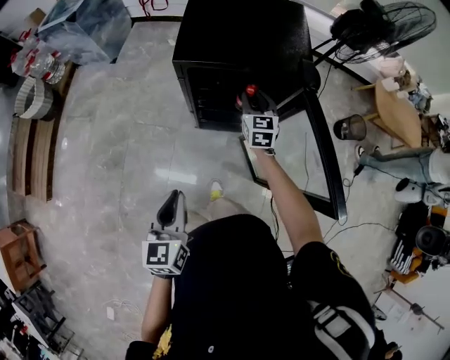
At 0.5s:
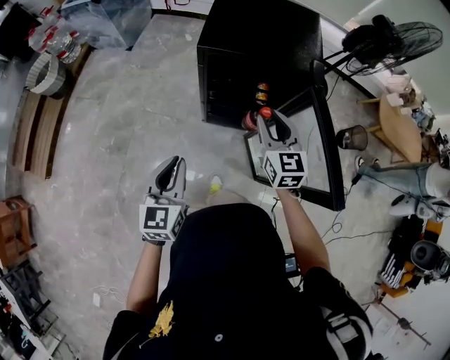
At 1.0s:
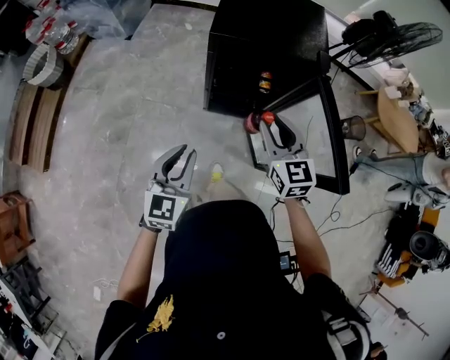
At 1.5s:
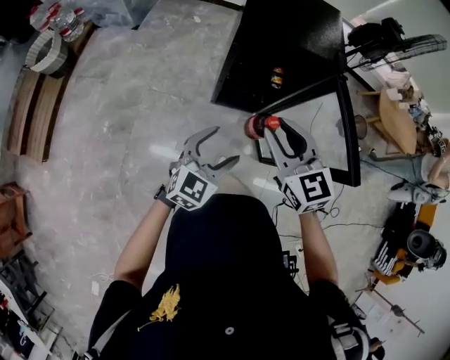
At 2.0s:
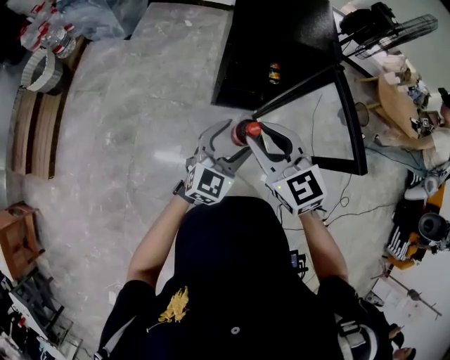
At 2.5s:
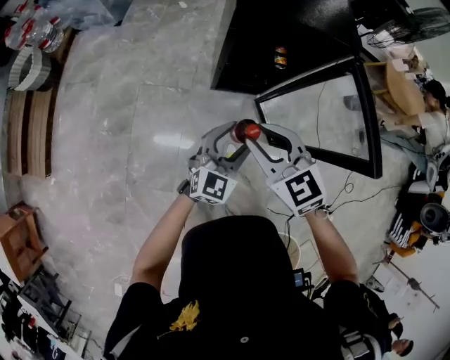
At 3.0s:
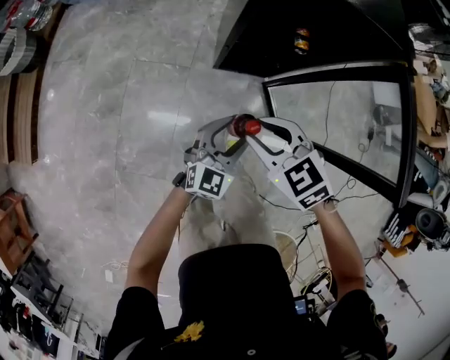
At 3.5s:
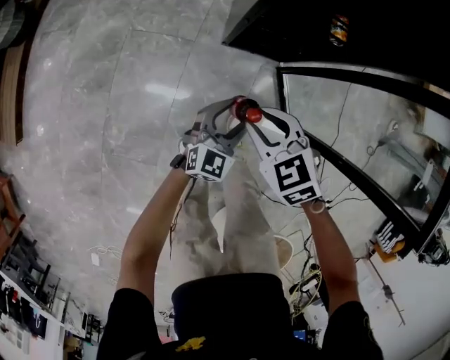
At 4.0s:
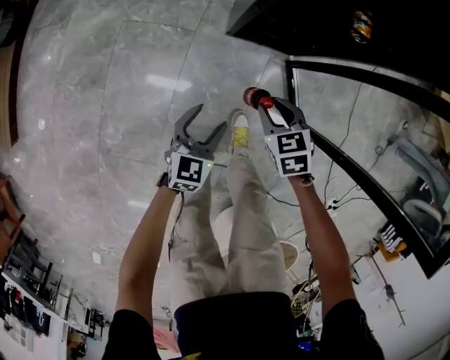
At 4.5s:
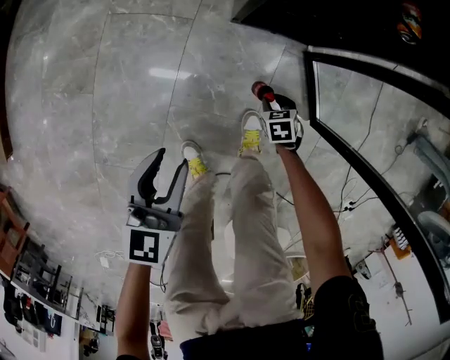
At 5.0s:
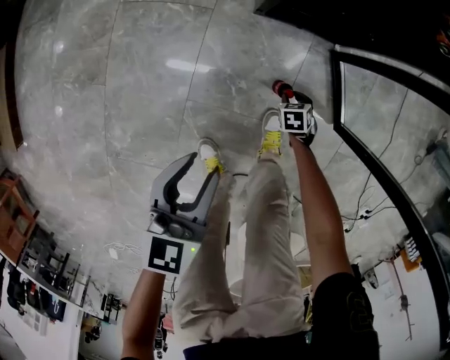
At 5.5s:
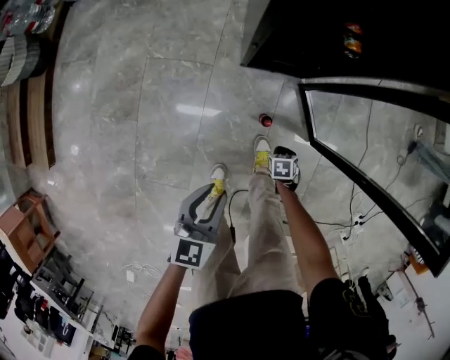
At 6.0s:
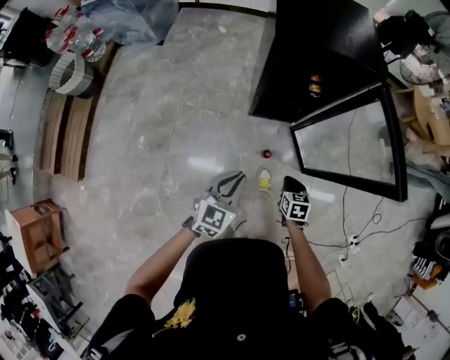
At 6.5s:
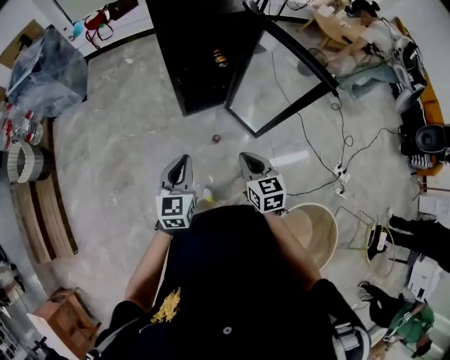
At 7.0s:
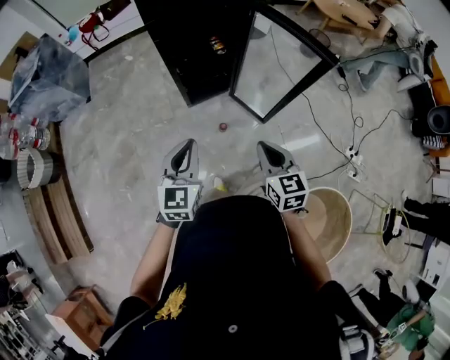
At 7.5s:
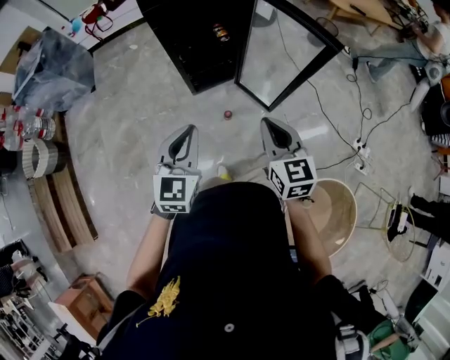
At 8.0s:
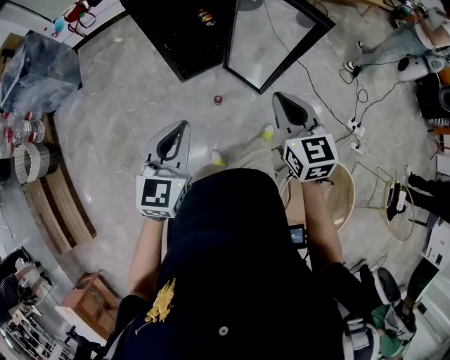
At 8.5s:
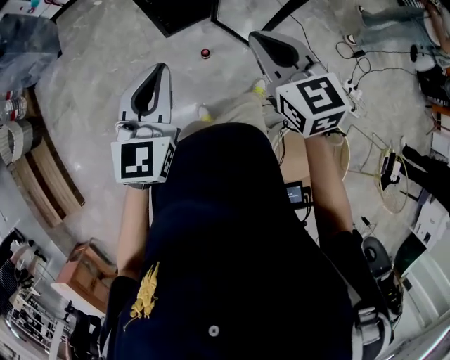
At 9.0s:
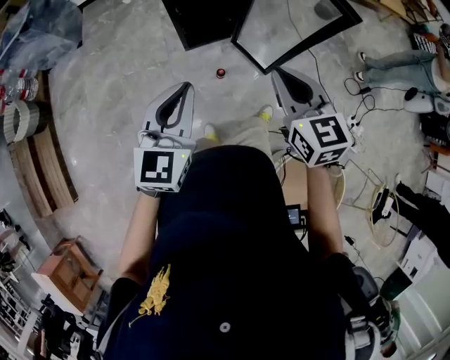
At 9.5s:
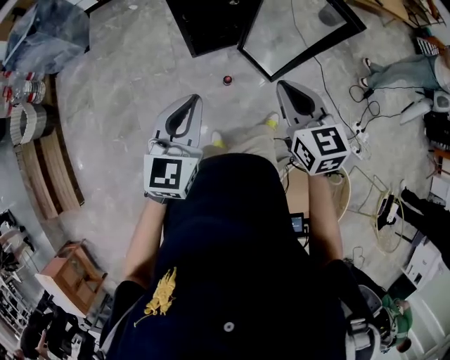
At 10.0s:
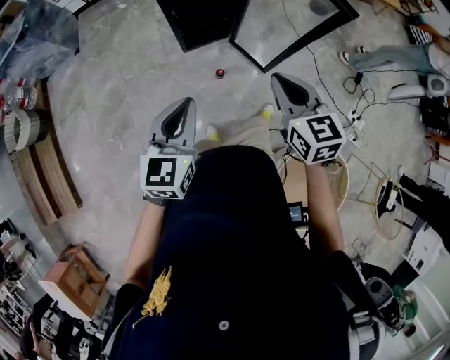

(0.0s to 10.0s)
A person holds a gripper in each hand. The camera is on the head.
0.0s - 2.0s: The left gripper rotates about 40 degrees, and opens its fingers; the right gripper travels backward, upward and to the left by some 40 cm, and rotates some 30 degrees.
2.0s - 4.0s: Both grippers move downward, some 60 cm. The left gripper swivels some 30 degrees. The right gripper points its fingers approximately 30 degrees further downward.
4.0s - 6.0s: The right gripper shifts approximately 25 cm upward, changes its angle by approximately 30 degrees, and closes its fingers. The left gripper travels upward by roughly 40 cm, and closes.
6.0s - 8.0s: The left gripper heads upward, backward and to the right, covering about 20 cm. Meanwhile the right gripper travels upward and backward by some 35 cm, and angles its fingers upward, by some 30 degrees.
8.0s - 10.0s: There are only small adjustments of the grippers.

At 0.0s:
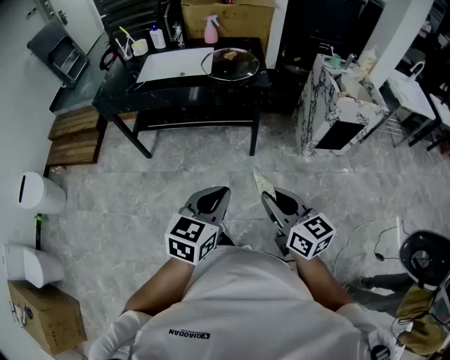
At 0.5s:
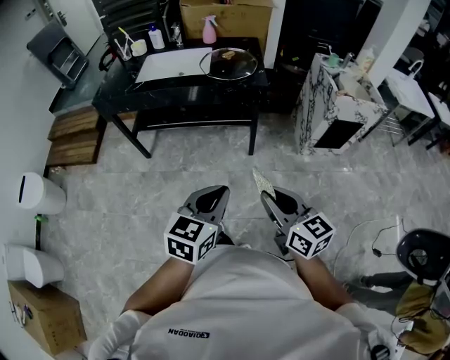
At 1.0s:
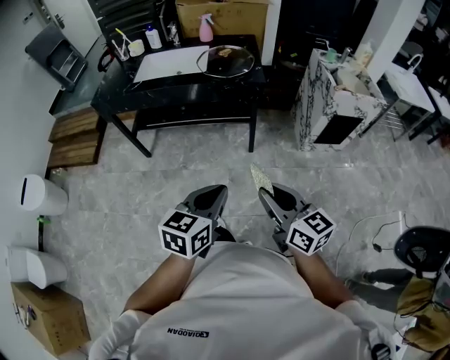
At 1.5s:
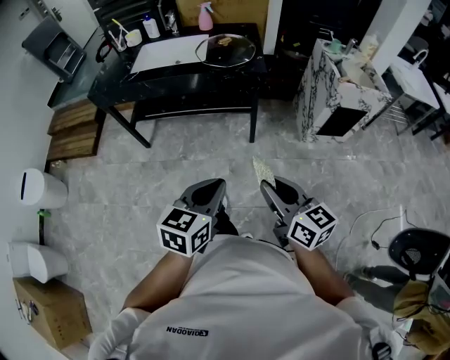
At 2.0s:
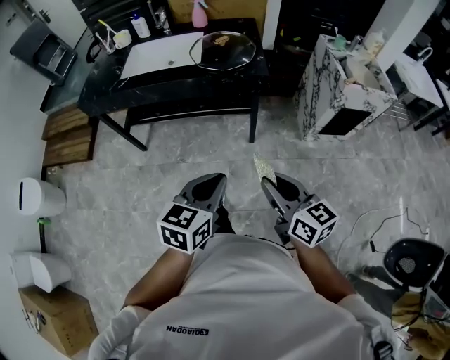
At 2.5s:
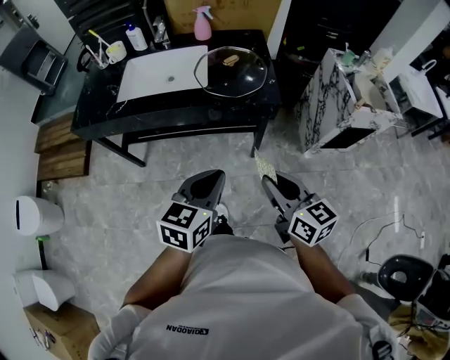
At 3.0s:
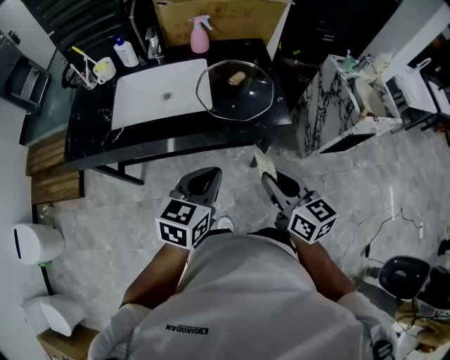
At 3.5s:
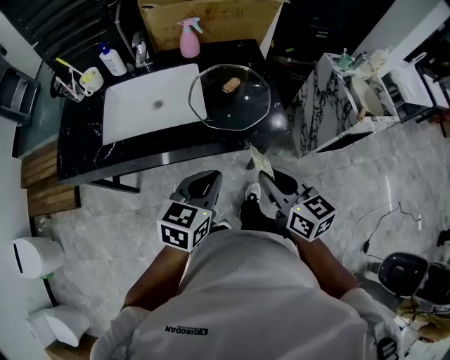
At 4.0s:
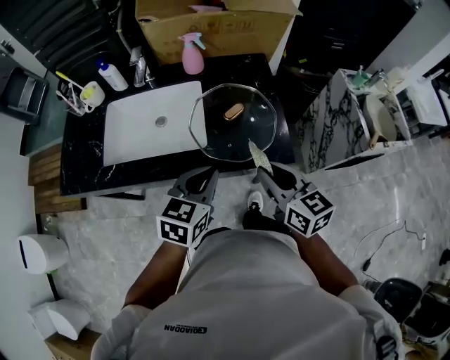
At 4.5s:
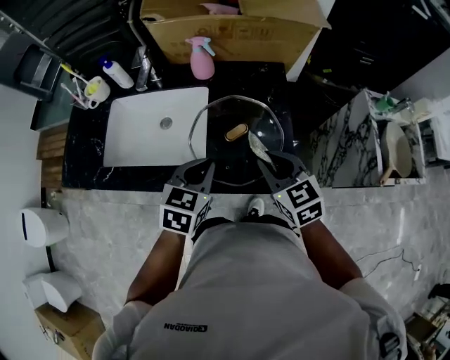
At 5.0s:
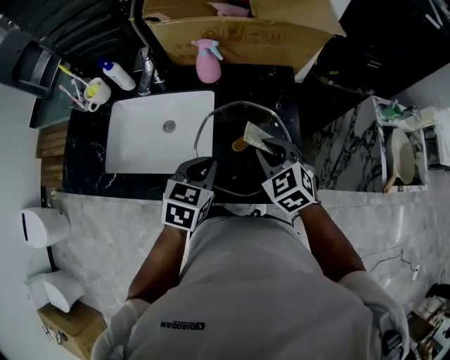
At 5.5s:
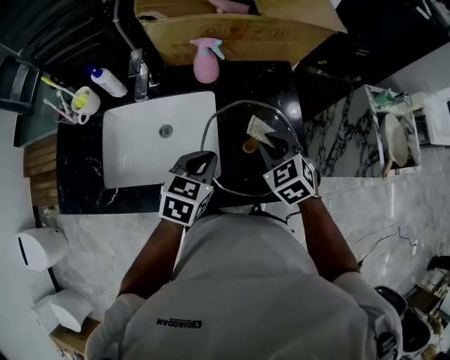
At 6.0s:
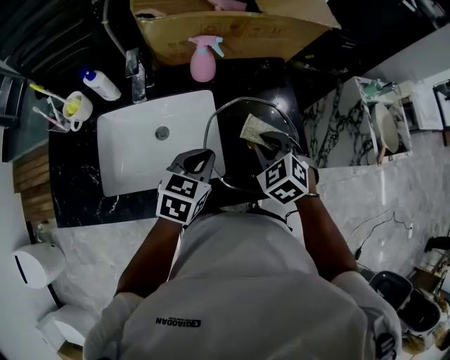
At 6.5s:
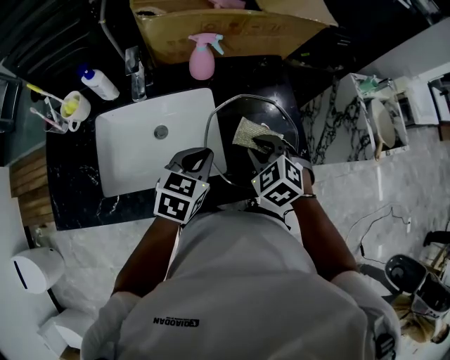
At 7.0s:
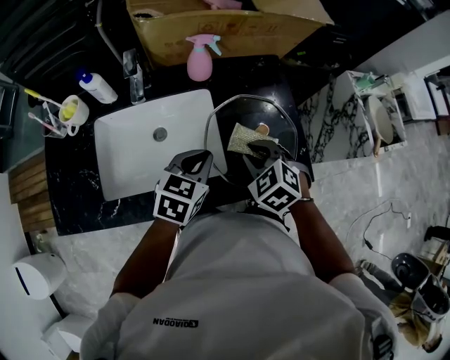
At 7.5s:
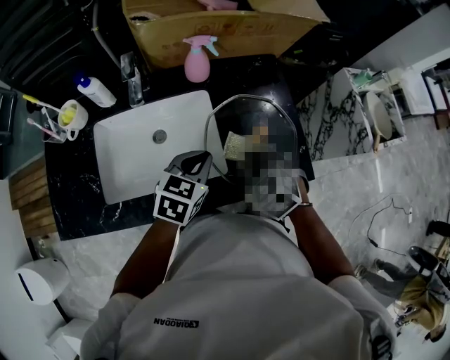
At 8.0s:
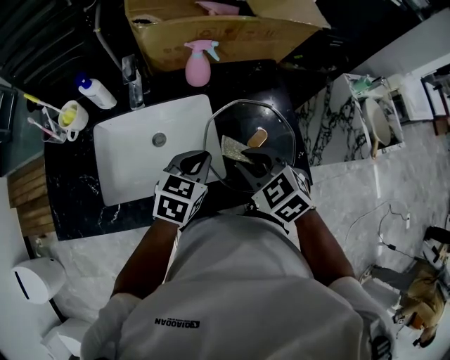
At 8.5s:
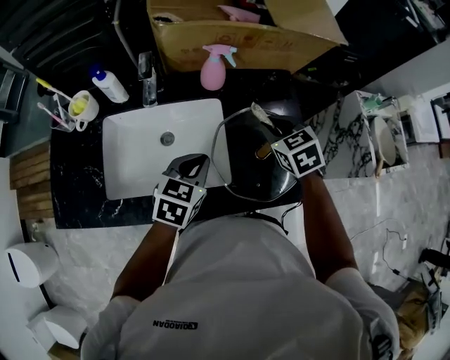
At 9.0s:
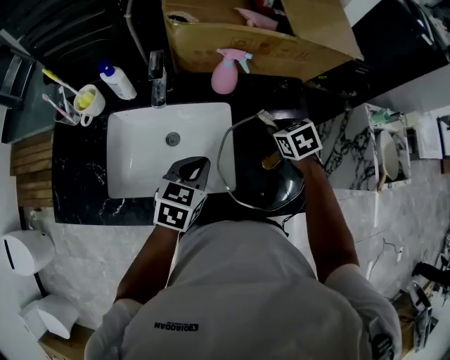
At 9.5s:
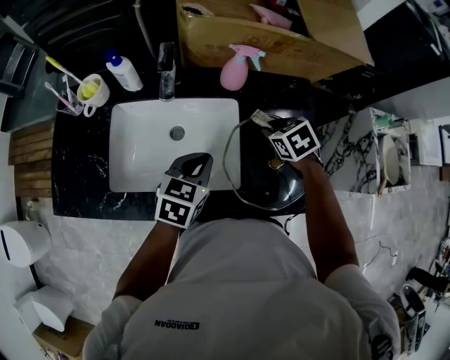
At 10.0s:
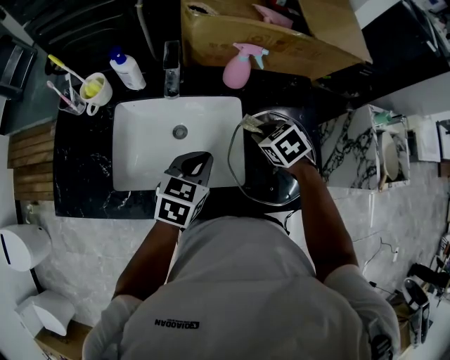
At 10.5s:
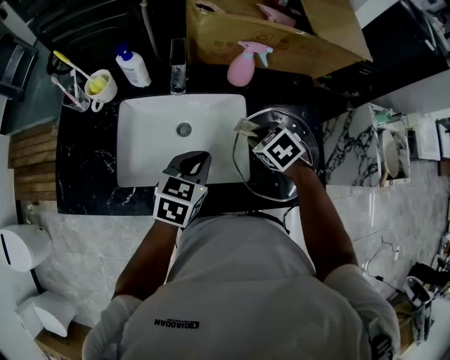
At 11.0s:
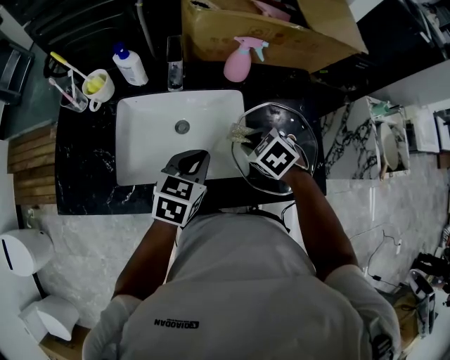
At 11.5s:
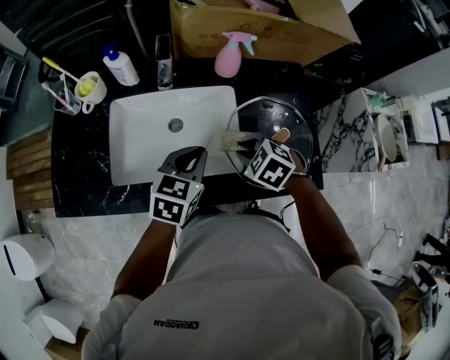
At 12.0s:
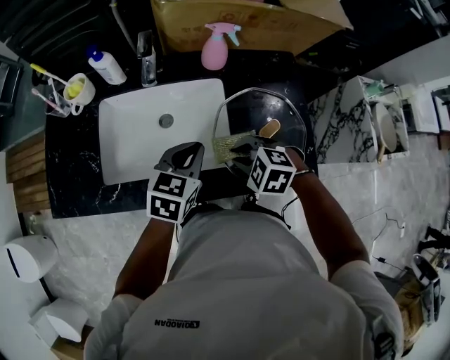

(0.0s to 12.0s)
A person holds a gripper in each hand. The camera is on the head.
0.0s - 2.0s: Both grippers travel together forward, about 10 cm.
2.0s - 4.0s: Both grippers are carried forward, about 50 cm.
4.0s - 6.0s: The right gripper goes approximately 20 cm forward and downward, and tilts its fingers about 30 degrees downward. Meanwhile the left gripper is displaced forward and to the left by some 20 cm.
6.0s - 8.0s: The right gripper is displaced to the left and backward by some 10 cm.
8.0s - 10.0s: The left gripper goes about 5 cm to the left. Meanwhile the right gripper goes approximately 15 cm forward and downward.
10.0s - 12.0s: The right gripper heads backward, covering approximately 15 cm, and swivels approximately 30 degrees.

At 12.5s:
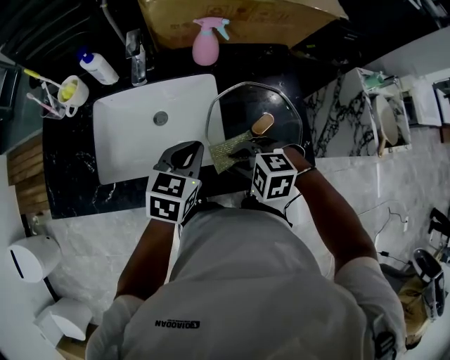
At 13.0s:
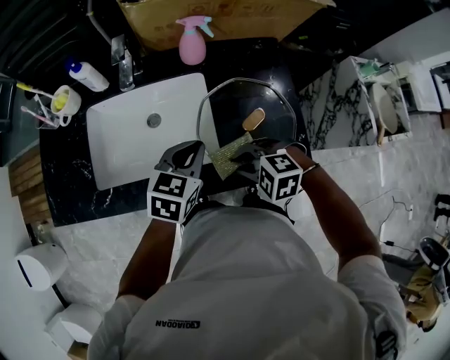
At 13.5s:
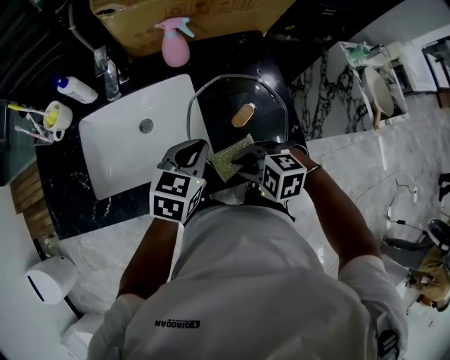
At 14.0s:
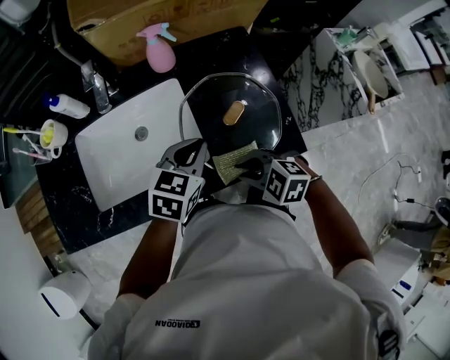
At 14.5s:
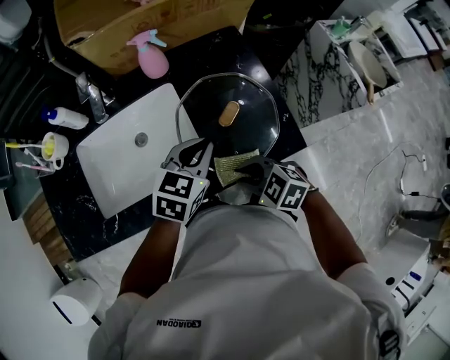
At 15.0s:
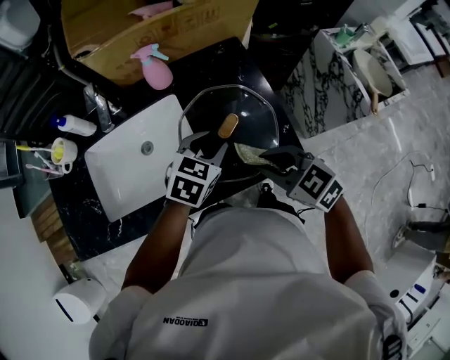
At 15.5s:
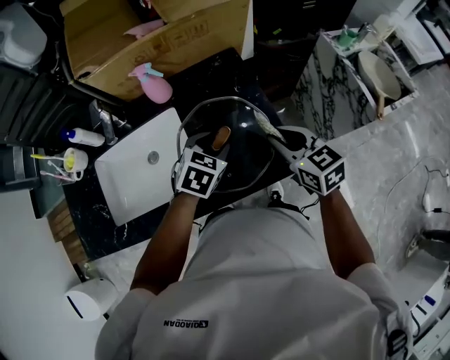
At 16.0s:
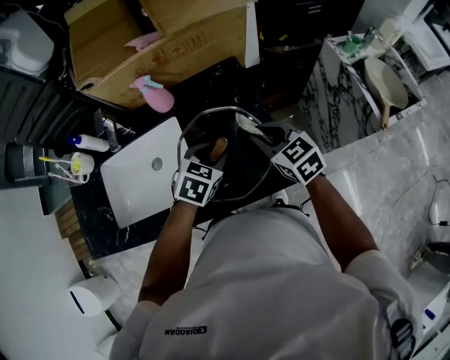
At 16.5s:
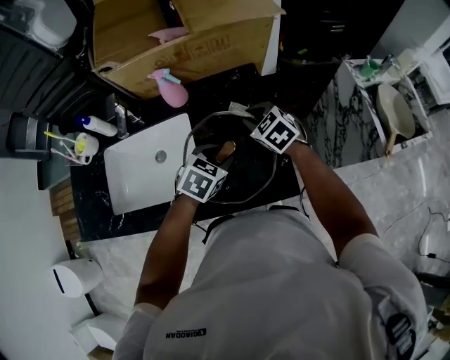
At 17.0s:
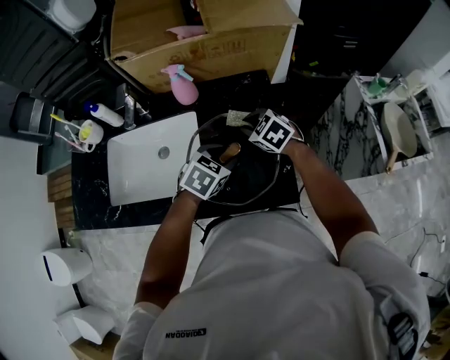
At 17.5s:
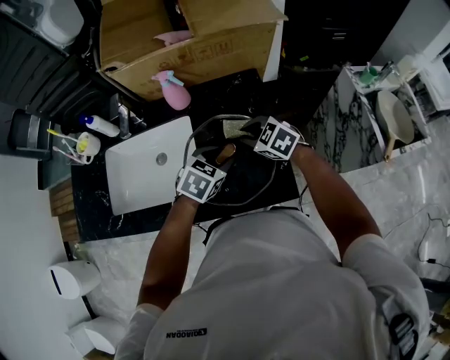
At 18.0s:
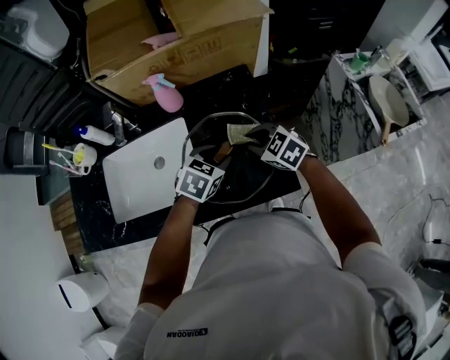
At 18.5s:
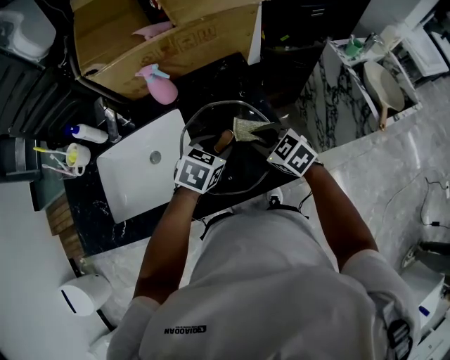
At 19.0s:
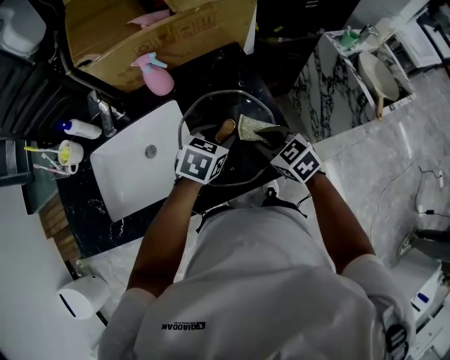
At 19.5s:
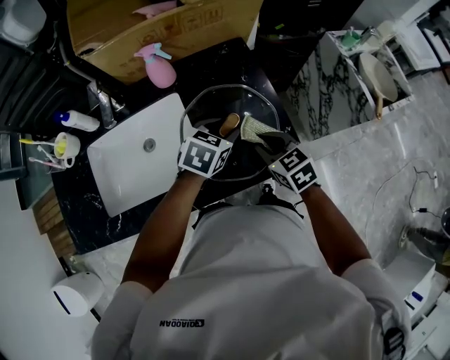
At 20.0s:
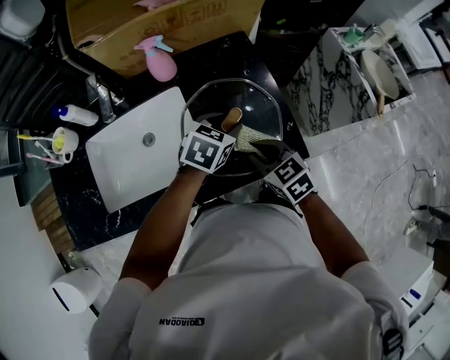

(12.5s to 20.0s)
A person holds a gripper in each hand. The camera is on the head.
12.5s - 14.5s: The right gripper travels backward by approximately 5 cm, and changes its angle by roughly 40 degrees. Meanwhile the left gripper goes about 10 cm to the right, and turns by roughly 20 degrees.
14.5s - 16.5s: The right gripper heads forward and to the right, covering roughly 30 cm. The left gripper heads to the right and forward, covering some 10 cm, and opens up.
16.5s - 18.0s: The right gripper shifts some 10 cm backward.
18.0s - 20.0s: The right gripper goes about 10 cm backward, and rotates about 20 degrees.
